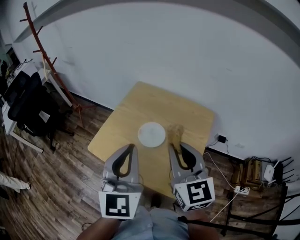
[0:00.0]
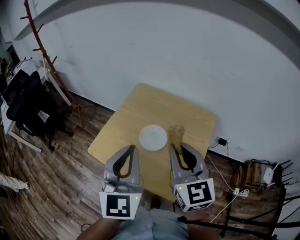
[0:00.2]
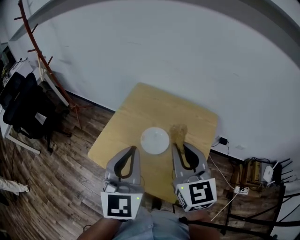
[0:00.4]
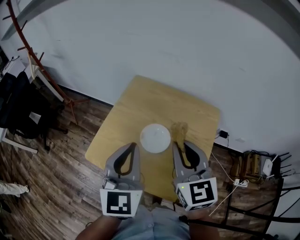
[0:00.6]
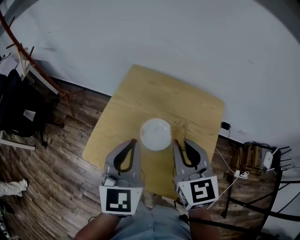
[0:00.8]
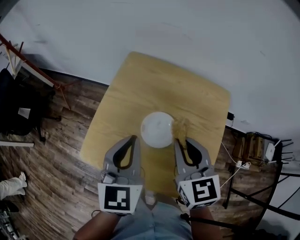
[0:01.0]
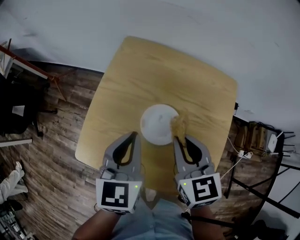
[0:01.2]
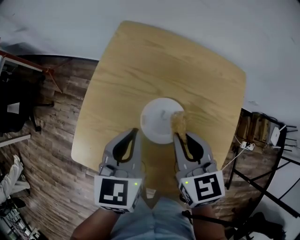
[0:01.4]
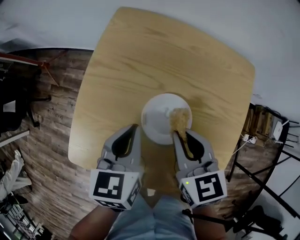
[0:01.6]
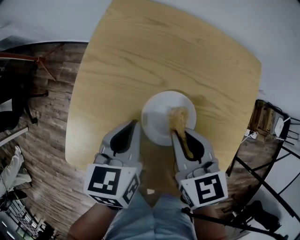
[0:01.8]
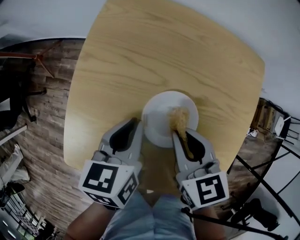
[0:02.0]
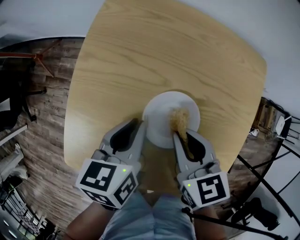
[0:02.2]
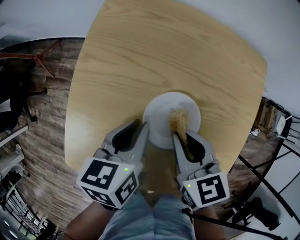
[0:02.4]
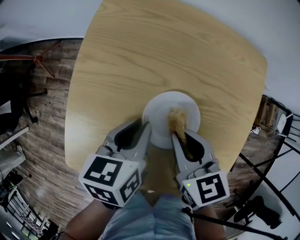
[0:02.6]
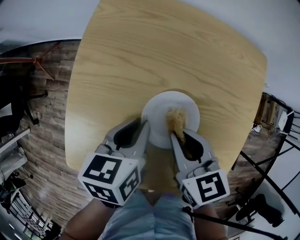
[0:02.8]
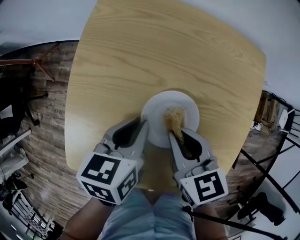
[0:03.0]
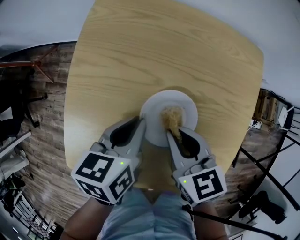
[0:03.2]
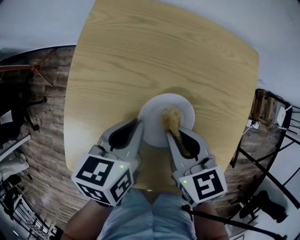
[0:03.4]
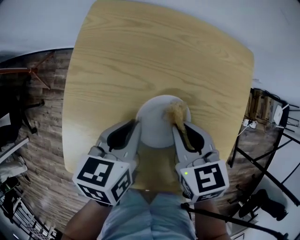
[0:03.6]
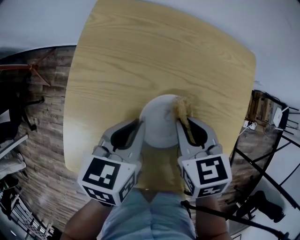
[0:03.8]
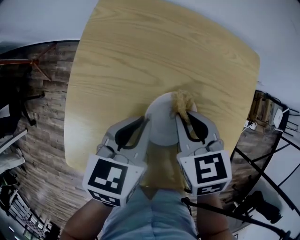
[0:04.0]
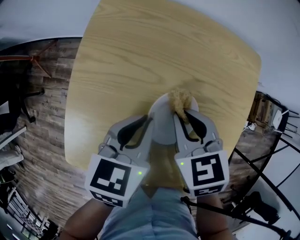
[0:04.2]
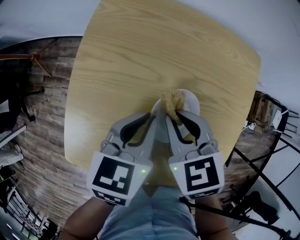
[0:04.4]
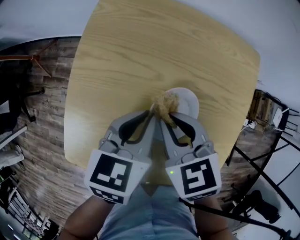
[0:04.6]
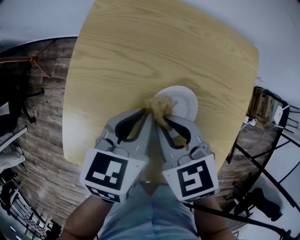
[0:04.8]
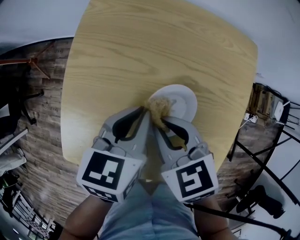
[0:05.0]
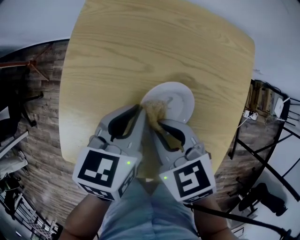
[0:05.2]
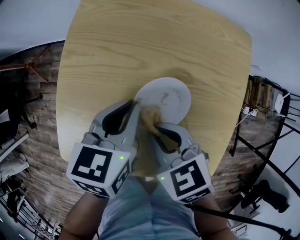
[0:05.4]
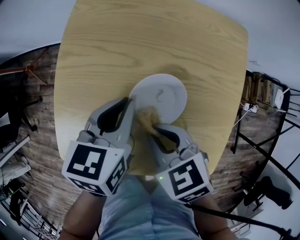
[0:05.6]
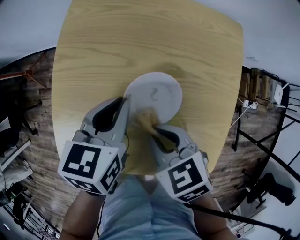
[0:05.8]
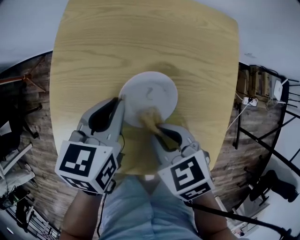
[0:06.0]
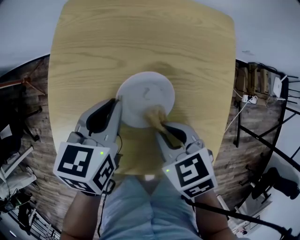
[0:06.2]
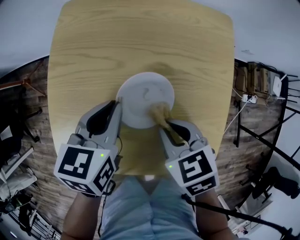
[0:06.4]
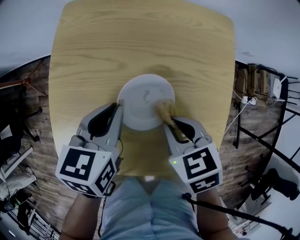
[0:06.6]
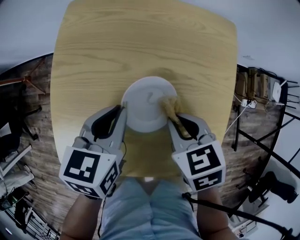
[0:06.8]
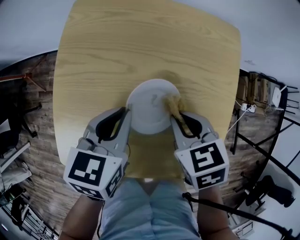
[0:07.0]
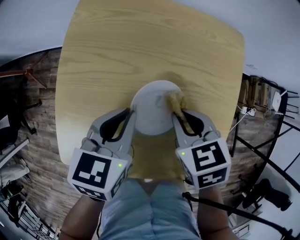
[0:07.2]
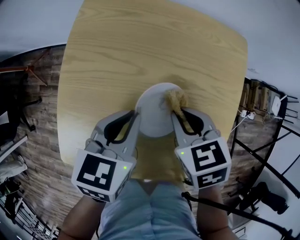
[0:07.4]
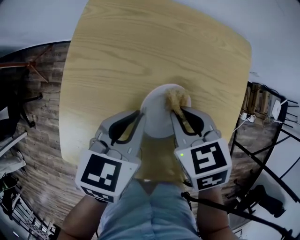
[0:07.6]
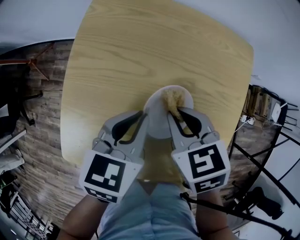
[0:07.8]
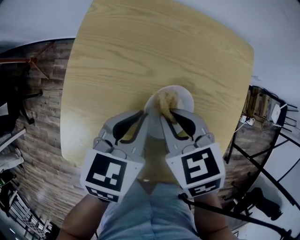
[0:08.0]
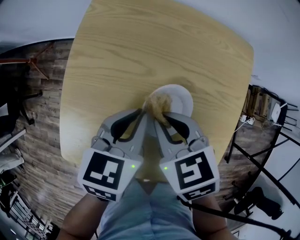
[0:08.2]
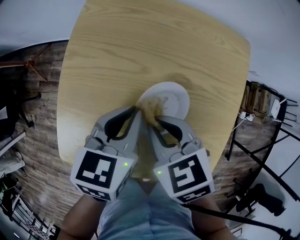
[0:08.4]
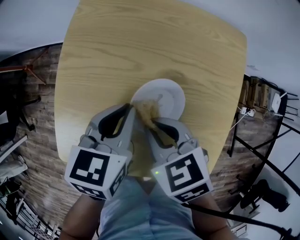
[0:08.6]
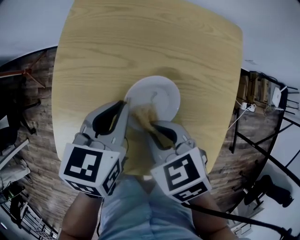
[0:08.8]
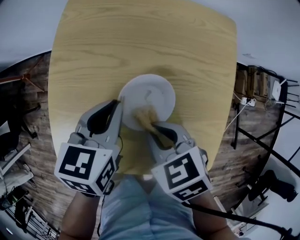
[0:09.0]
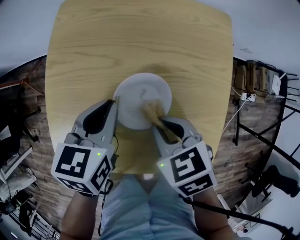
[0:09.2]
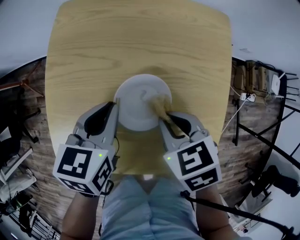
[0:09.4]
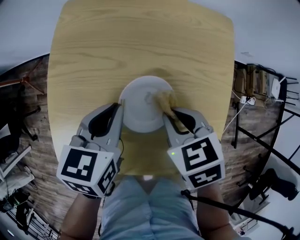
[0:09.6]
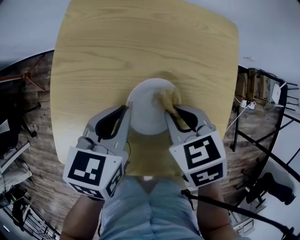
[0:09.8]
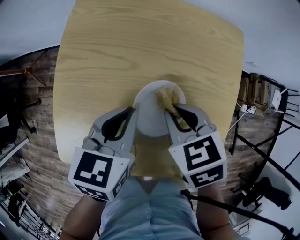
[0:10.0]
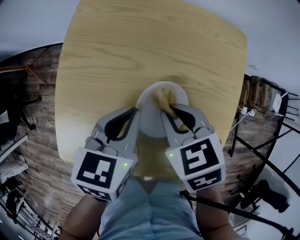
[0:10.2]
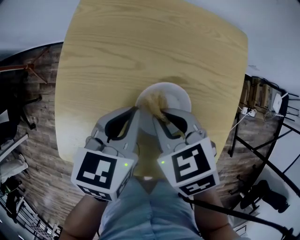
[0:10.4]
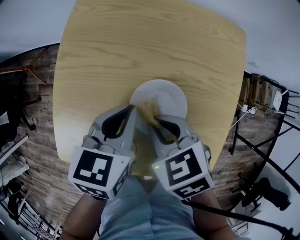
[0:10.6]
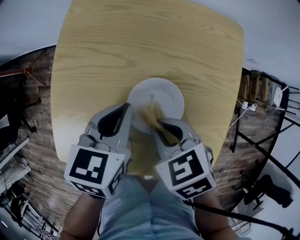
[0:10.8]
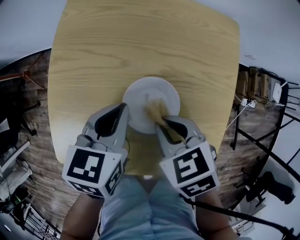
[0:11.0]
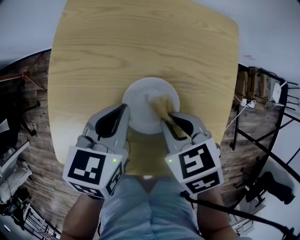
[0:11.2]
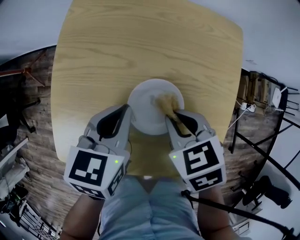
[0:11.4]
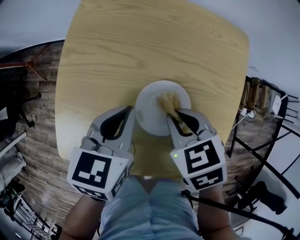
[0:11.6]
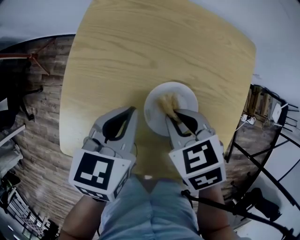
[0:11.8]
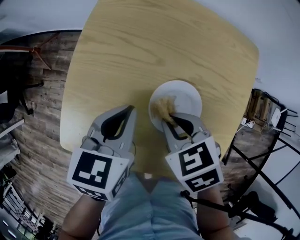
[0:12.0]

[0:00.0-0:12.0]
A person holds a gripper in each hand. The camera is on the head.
0:00.0 to 0:01.6: Both grippers travel together downward and forward, some 30 cm. The right gripper points its fingers approximately 30 degrees further downward, while the left gripper tilts its fingers approximately 40 degrees downward.
0:01.6 to 0:03.0: The left gripper goes roughly 5 cm downward.
0:03.0 to 0:04.4: The grippers make only small movements.
0:04.4 to 0:06.0: The right gripper shifts roughly 10 cm backward.
0:06.0 to 0:07.6: The right gripper travels forward by roughly 10 cm.
0:07.6 to 0:09.0: The right gripper moves backward, roughly 10 cm.
0:09.0 to 0:10.4: The right gripper is displaced forward by approximately 5 cm.
0:10.4 to 0:12.0: The left gripper heads to the left, covering approximately 5 cm.

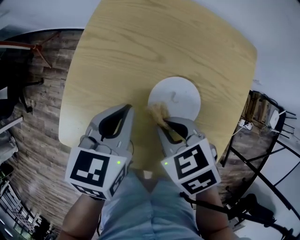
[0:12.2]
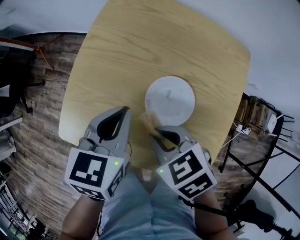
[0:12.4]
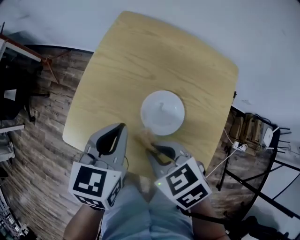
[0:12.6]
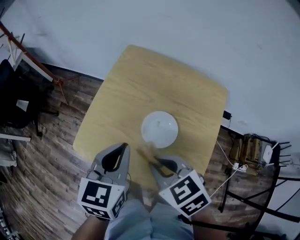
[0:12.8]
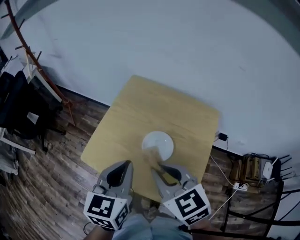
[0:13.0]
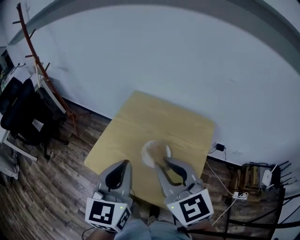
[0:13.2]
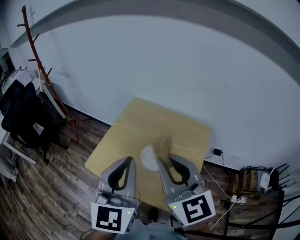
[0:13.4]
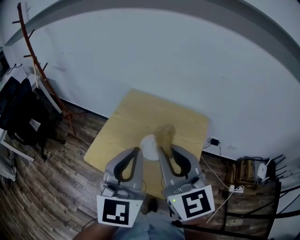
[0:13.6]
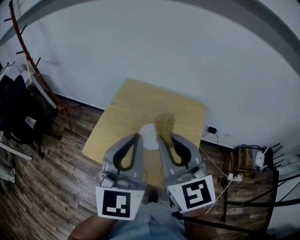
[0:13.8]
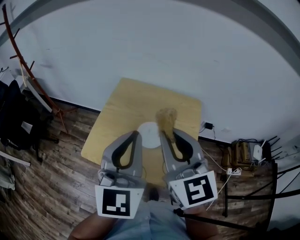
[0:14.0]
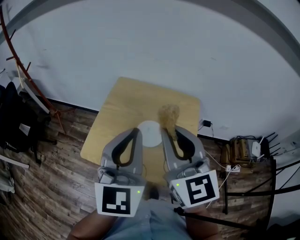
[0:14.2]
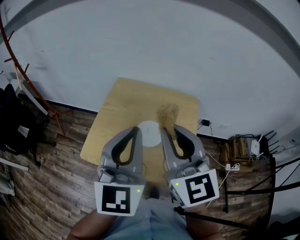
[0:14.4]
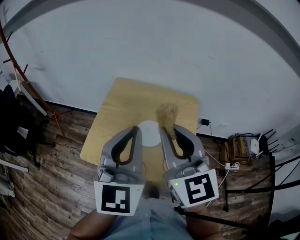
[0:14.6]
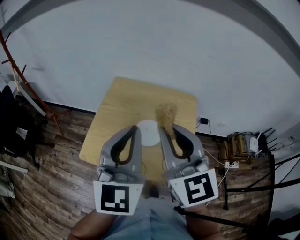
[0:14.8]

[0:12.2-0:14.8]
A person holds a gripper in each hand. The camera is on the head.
0:12.2 to 0:13.4: The right gripper goes about 35 cm upward, and points its fingers about 60 degrees further upward. Meanwhile the left gripper moves upward and backward, some 35 cm, and tips its fingers upward by some 40 degrees.
0:13.4 to 0:14.8: The grippers stay close to where they were, moving slightly.

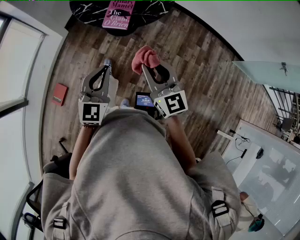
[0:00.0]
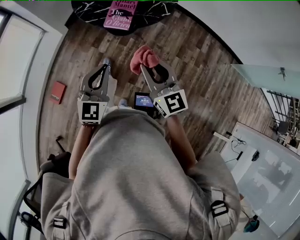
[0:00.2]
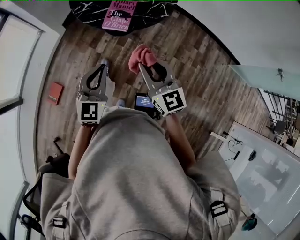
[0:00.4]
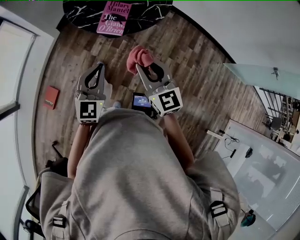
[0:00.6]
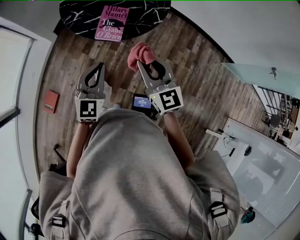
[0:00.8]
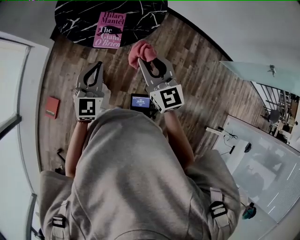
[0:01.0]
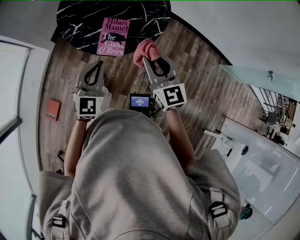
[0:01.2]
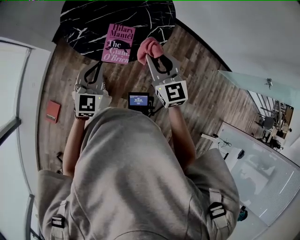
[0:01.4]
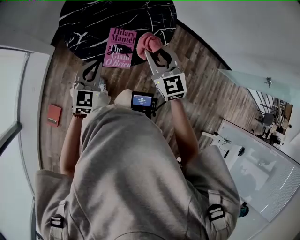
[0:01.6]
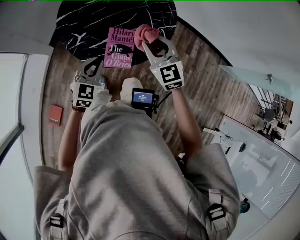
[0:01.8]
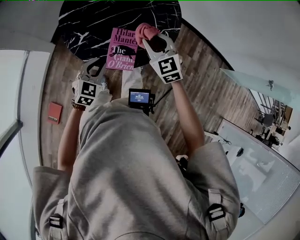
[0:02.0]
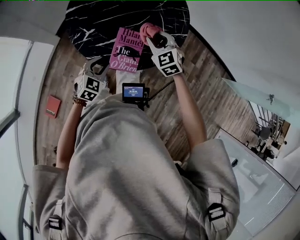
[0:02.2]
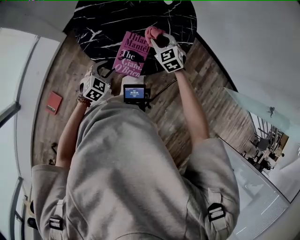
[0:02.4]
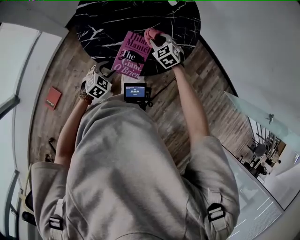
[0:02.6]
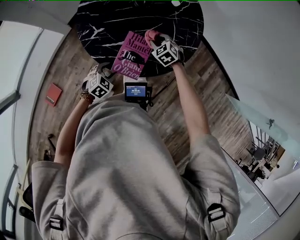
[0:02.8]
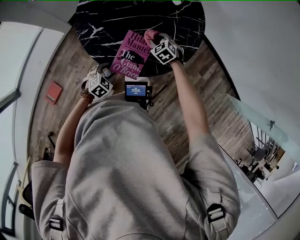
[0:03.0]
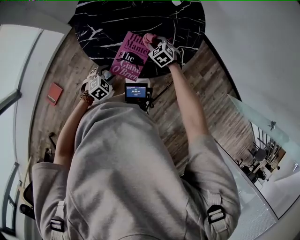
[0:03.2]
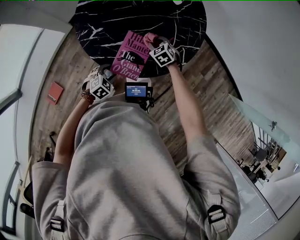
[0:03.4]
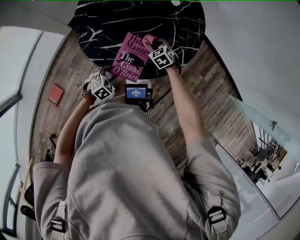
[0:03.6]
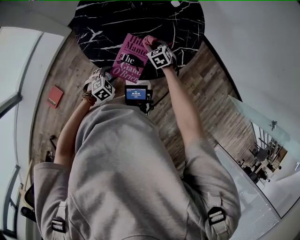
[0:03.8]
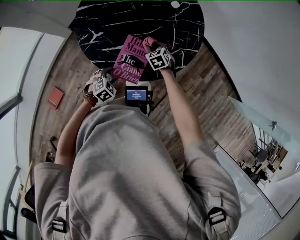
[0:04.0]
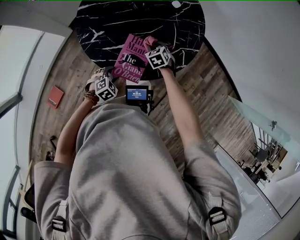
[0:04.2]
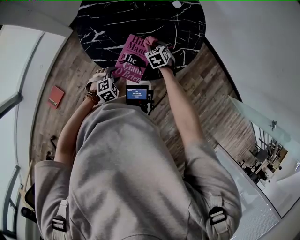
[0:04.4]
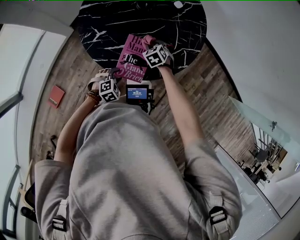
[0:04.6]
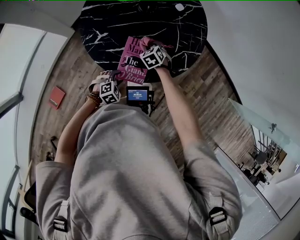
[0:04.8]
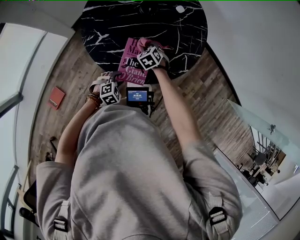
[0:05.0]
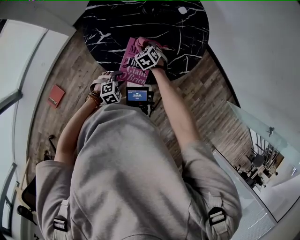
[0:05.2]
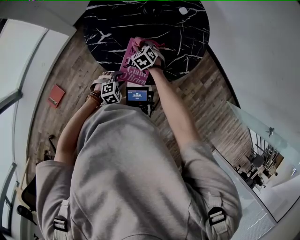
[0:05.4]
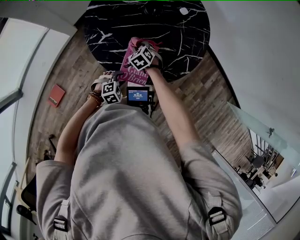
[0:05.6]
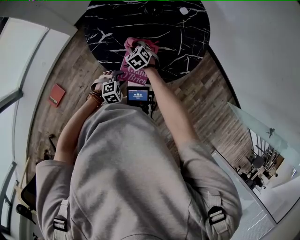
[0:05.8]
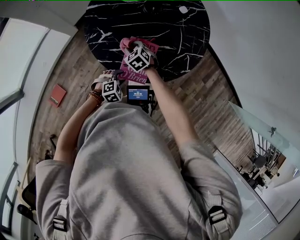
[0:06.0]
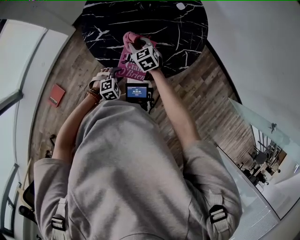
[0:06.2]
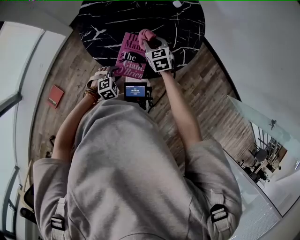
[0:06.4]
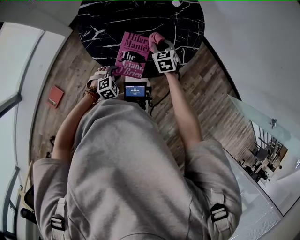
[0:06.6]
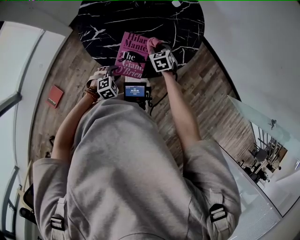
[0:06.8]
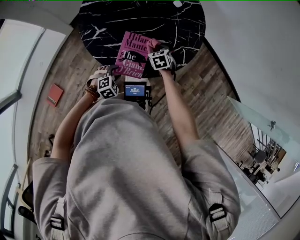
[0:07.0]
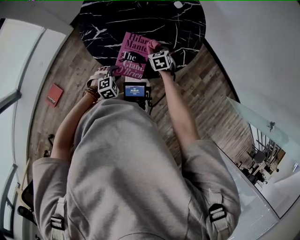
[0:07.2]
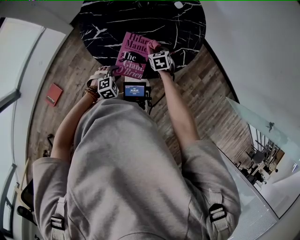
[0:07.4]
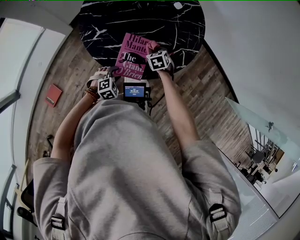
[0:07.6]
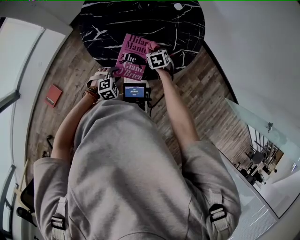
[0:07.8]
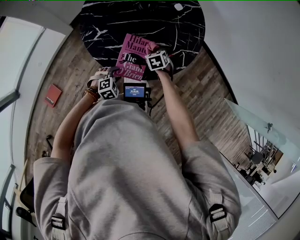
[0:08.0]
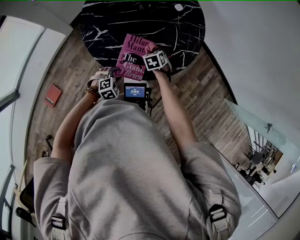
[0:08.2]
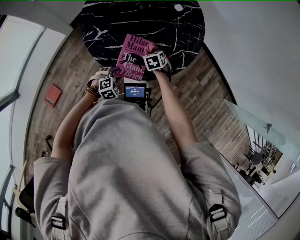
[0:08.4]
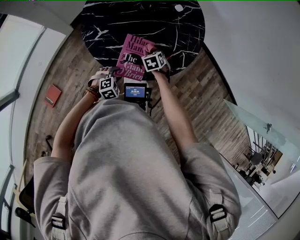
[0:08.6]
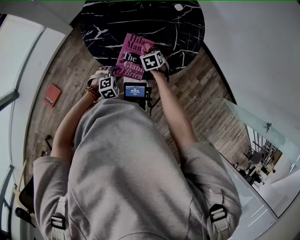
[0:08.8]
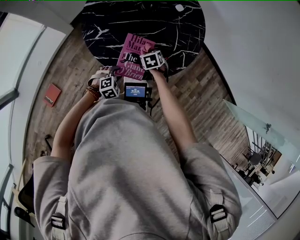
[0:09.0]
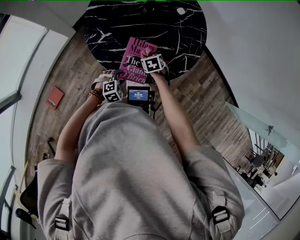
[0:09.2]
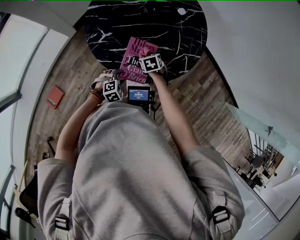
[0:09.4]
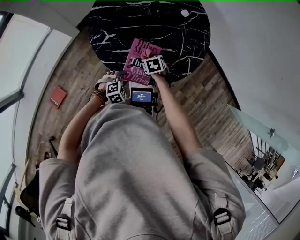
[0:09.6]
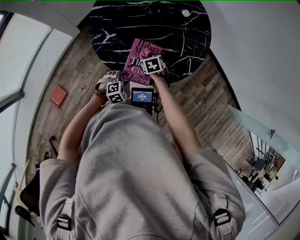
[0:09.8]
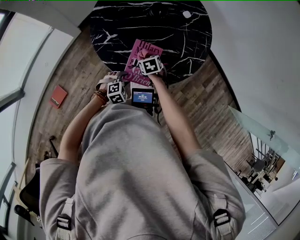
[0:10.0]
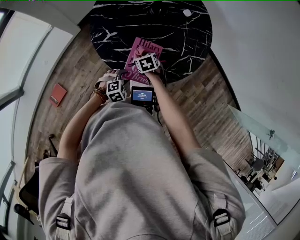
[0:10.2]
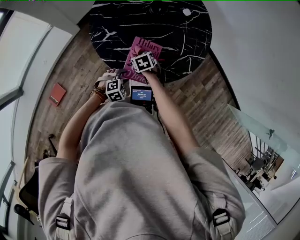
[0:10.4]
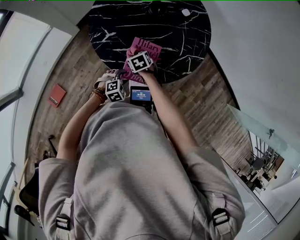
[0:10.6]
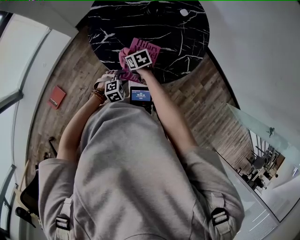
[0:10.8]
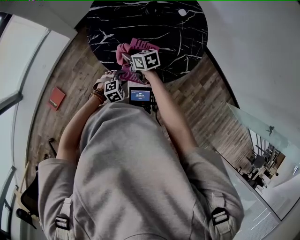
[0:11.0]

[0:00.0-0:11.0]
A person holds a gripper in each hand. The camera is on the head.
0:00.0 to 0:01.6: Both grippers travel together forward, about 35 cm.
0:01.6 to 0:03.2: The right gripper moves downward and forward, some 35 cm, and tilts its fingers approximately 40 degrees downward. Meanwhile the left gripper is displaced downward by approximately 25 cm, tilts its fingers about 40 degrees downward, and opens.
0:03.2 to 0:04.8: The grippers stay close to where they were, moving slightly.
0:04.8 to 0:06.2: The right gripper goes some 10 cm to the left and upward, and changes its angle by some 20 degrees.
0:06.2 to 0:07.8: The right gripper is displaced to the right and downward by roughly 15 cm, and swivels roughly 30 degrees.
0:07.8 to 0:09.4: The right gripper shifts roughly 5 cm to the left.
0:09.4 to 0:11.0: The right gripper heads to the left and upward, covering roughly 15 cm, and rotates about 30 degrees.
